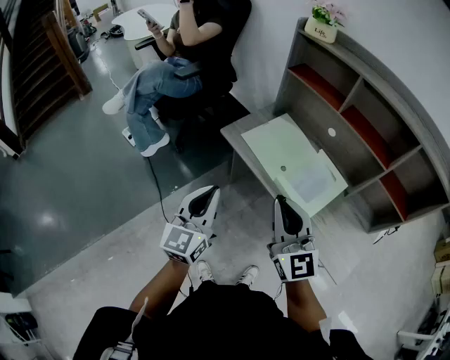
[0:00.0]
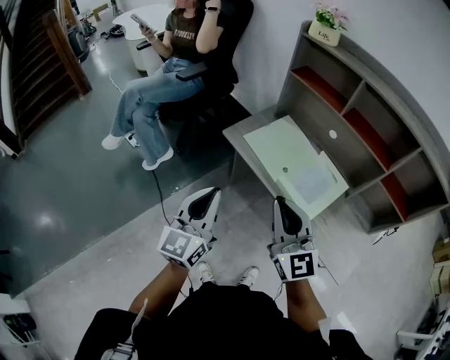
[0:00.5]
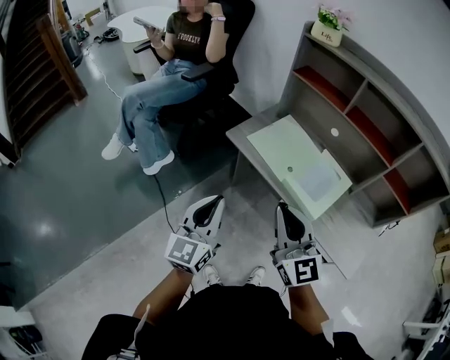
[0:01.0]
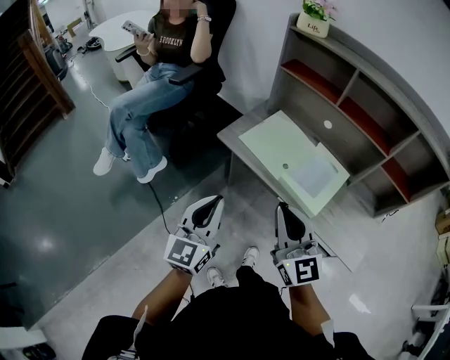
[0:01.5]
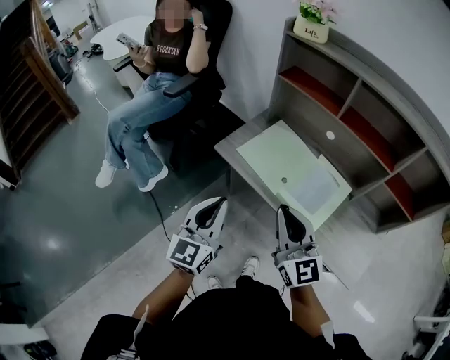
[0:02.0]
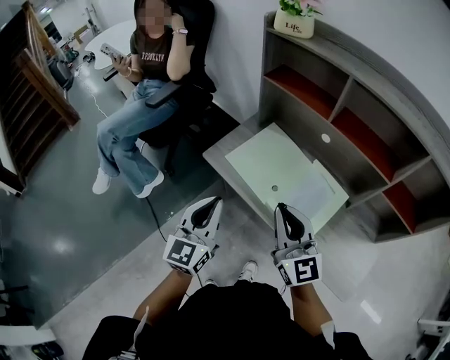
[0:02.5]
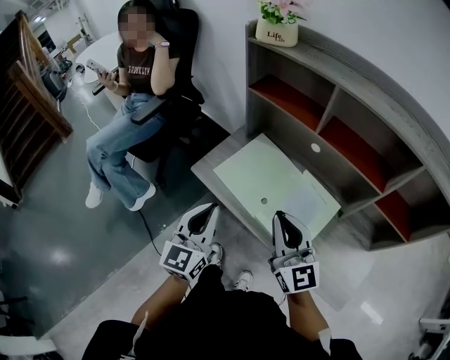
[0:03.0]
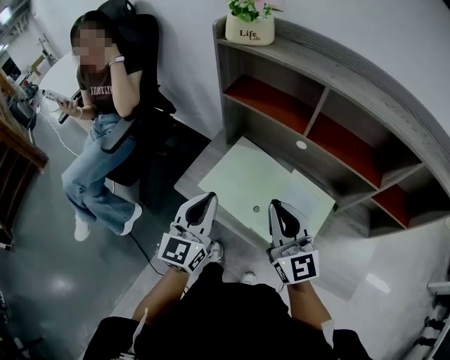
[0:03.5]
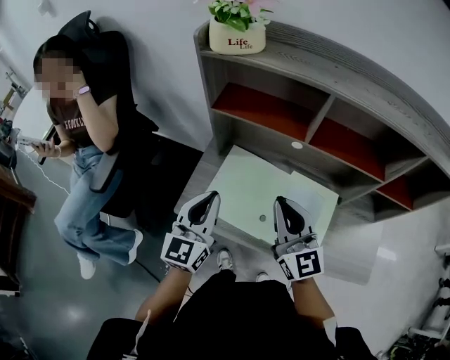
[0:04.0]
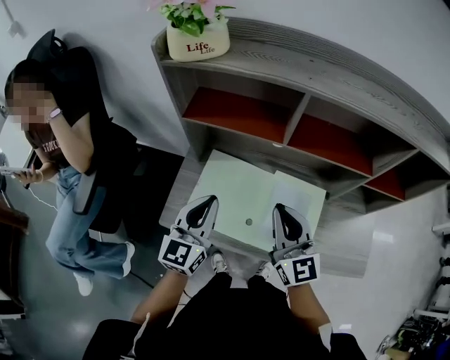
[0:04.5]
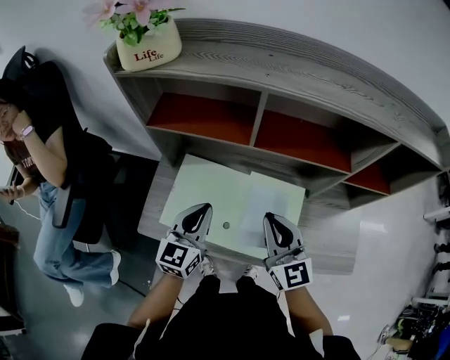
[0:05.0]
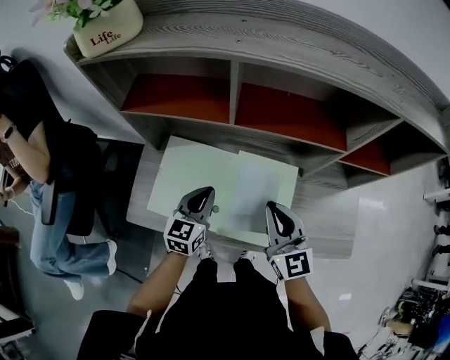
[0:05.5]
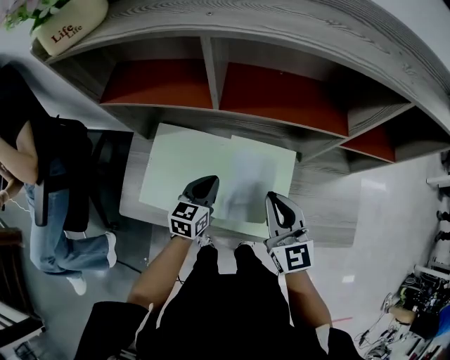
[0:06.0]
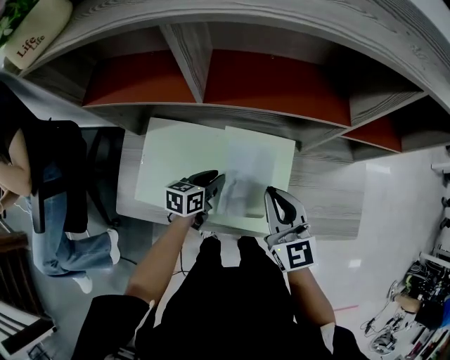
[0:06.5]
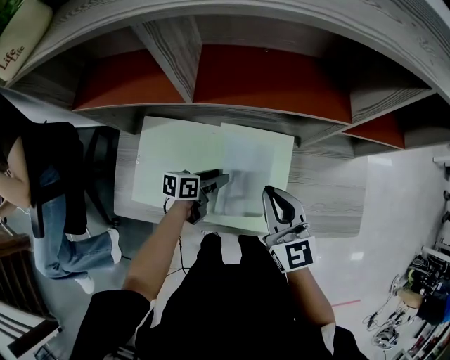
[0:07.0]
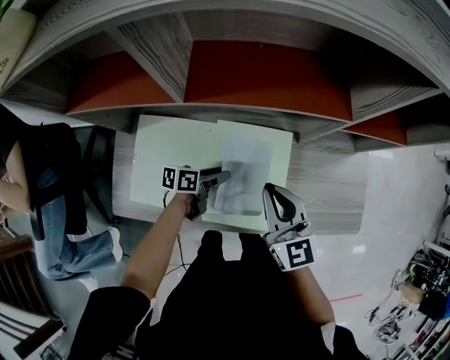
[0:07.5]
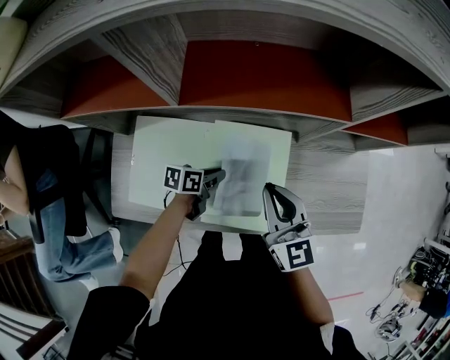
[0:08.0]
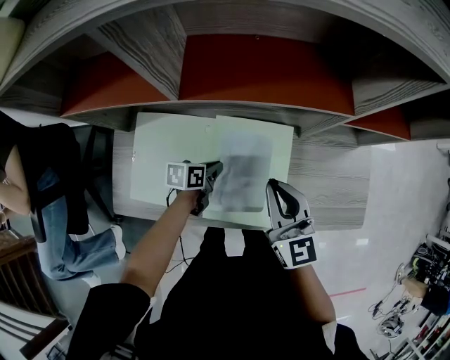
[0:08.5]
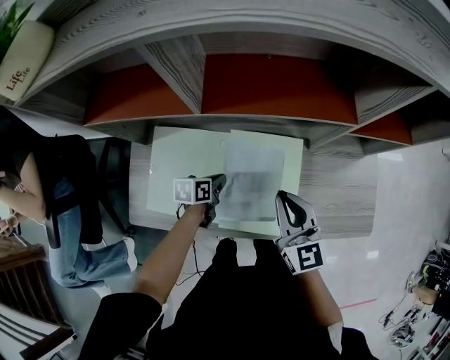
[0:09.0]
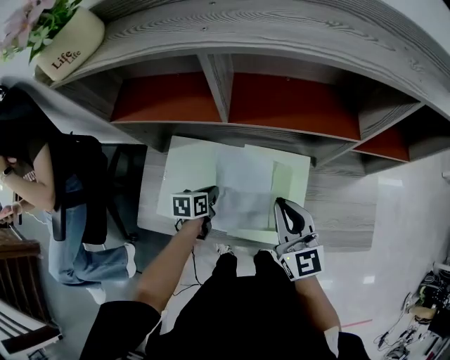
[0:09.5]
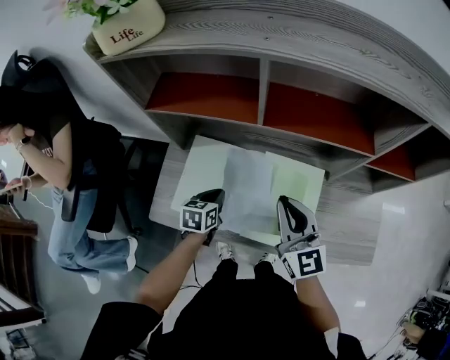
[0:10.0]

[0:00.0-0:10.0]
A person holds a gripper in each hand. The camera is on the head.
0:00.0 to 0:02.0: Both grippers travel together forward, approximately 5 cm.
0:02.0 to 0:04.0: The grippers both shift forward by roughly 25 cm. The right gripper changes its angle by about 20 degrees. The left gripper turns by approximately 20 degrees.
0:04.0 to 0:06.0: The right gripper shifts about 20 cm to the right and downward, and turns by some 20 degrees; the left gripper travels downward and to the right by about 30 cm, and changes its angle by about 30 degrees.
0:06.0 to 0:08.0: The left gripper goes approximately 15 cm downward and to the right, changes its angle by roughly 50 degrees, and opens, then closes again.
0:08.0 to 0:10.0: The right gripper moves about 10 cm. Meanwhile the left gripper moves approximately 15 cm, and rotates some 40 degrees.

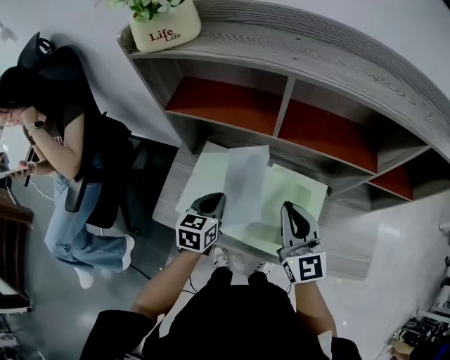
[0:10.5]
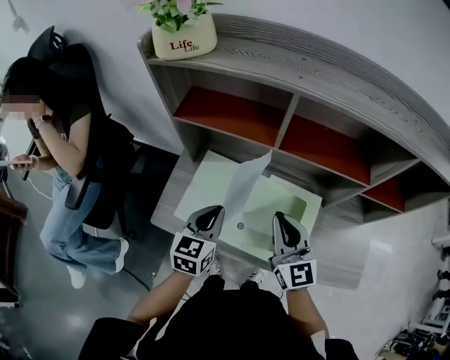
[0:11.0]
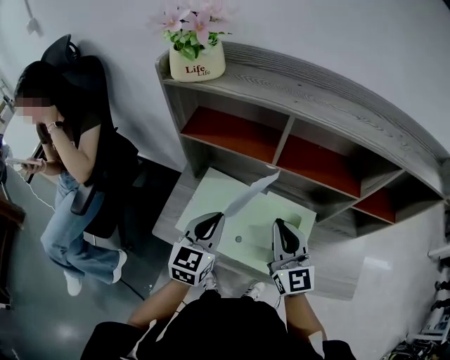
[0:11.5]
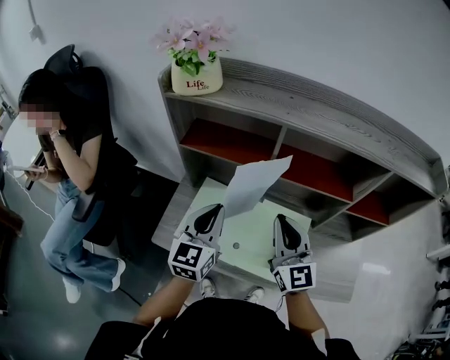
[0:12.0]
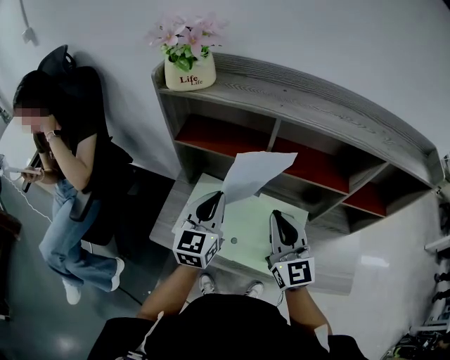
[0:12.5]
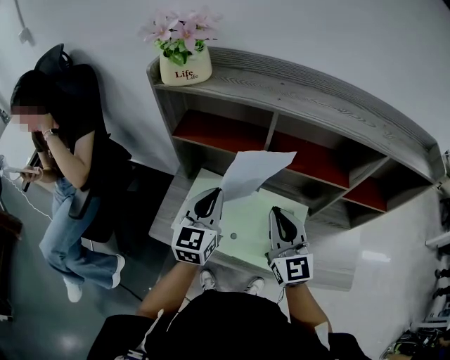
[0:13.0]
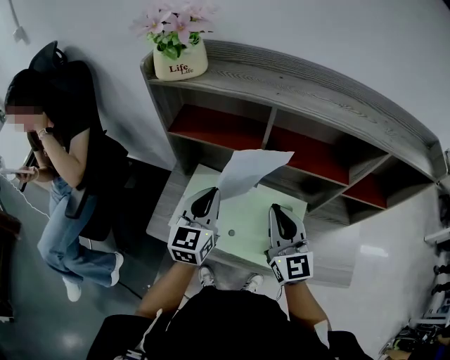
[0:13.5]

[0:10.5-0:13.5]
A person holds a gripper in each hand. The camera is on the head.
0:10.5 to 0:12.0: The left gripper travels upward by about 20 cm, and rotates some 30 degrees, while the right gripper shifts roughly 10 cm upward.
0:12.0 to 0:13.5: There are only small adjustments of the grippers.

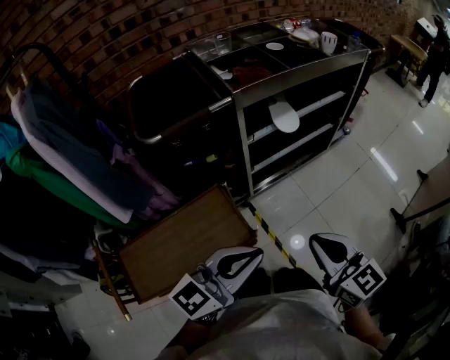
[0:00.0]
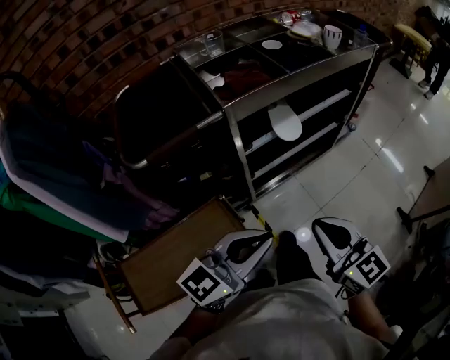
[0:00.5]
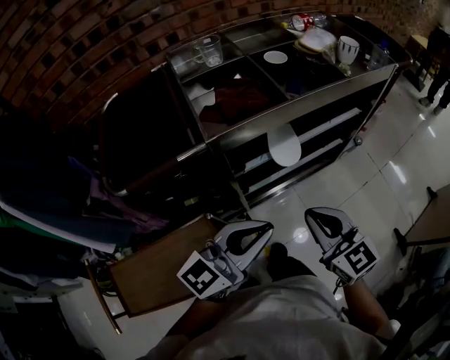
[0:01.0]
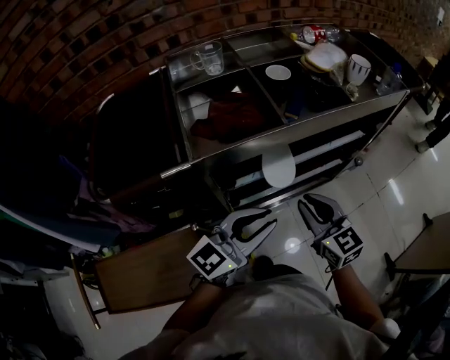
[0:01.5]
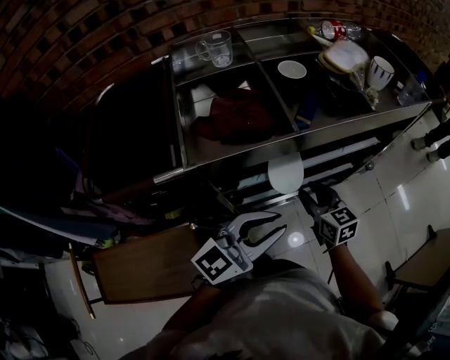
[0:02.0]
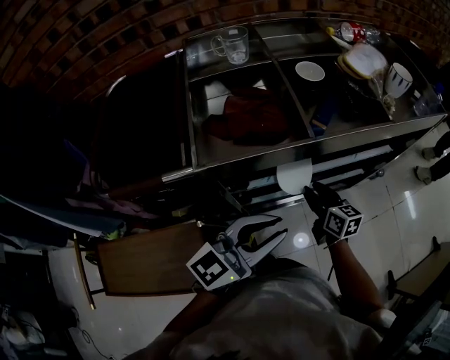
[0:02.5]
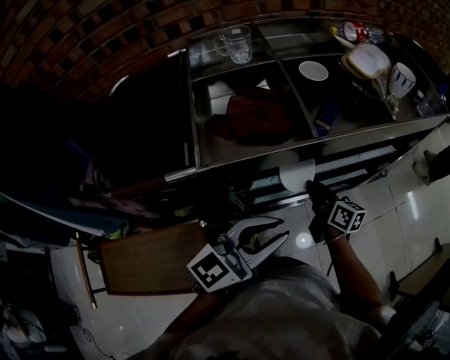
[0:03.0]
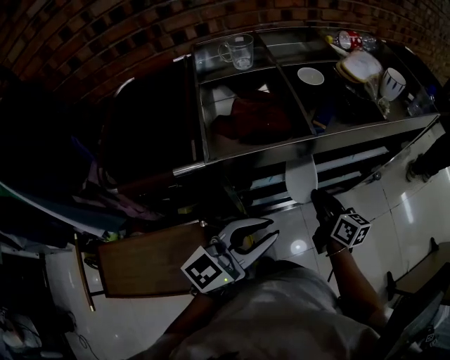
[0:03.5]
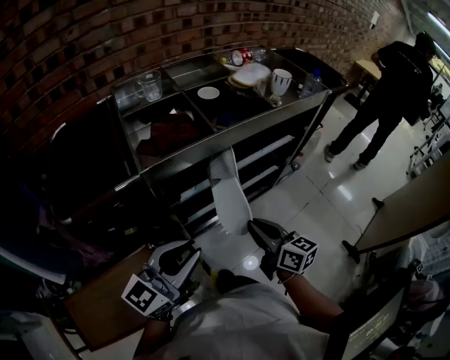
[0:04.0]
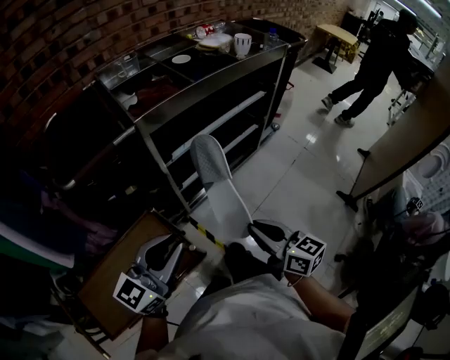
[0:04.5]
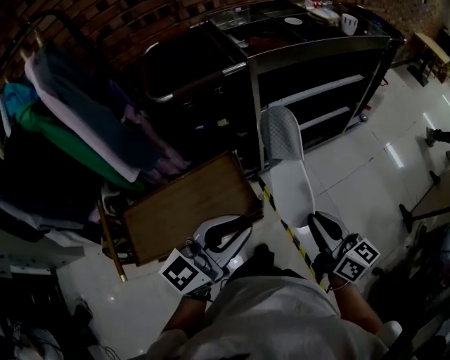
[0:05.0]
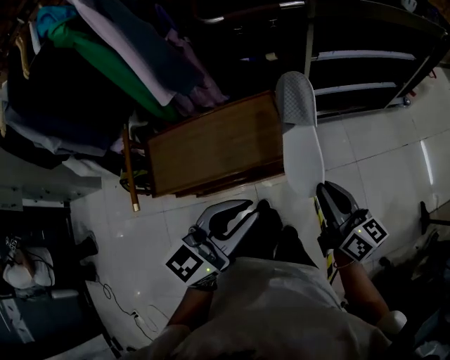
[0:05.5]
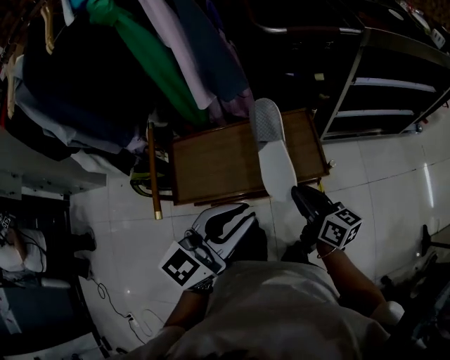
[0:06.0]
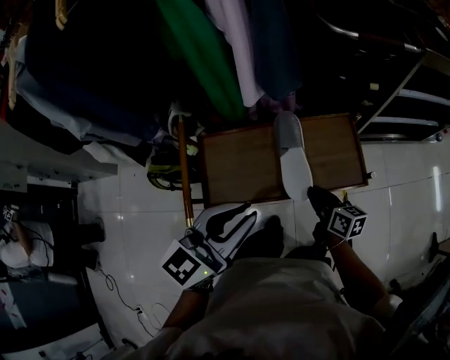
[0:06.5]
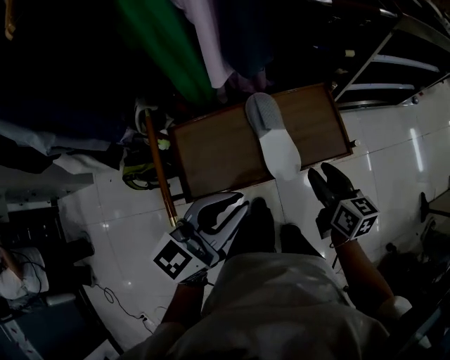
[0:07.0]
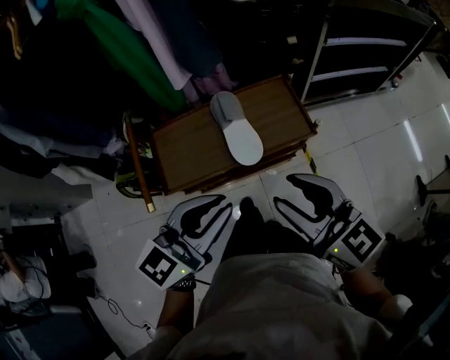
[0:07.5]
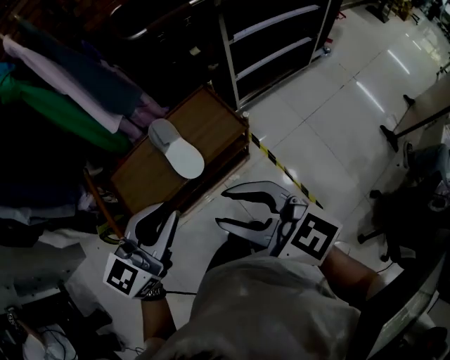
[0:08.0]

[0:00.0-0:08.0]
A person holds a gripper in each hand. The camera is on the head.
0:00.0 to 0:02.0: The right gripper shifts approximately 50 cm forward and downward, and opens up, while the left gripper moves forward, some 35 cm.
0:02.0 to 0:04.0: The right gripper shifts some 20 cm backward and upward, turns by roughly 20 degrees, and closes its fingers, while the left gripper is displaced backward, to the left and upward by approximately 15 cm.
0:04.0 to 0:06.0: Both grippers are carried some 50 cm. The right gripper swivels some 30 degrees; the left gripper rotates approximately 20 degrees.
0:06.0 to 0:08.0: The left gripper moves backward, some 5 cm, and reaches approximately 15 cm to the left, then returns, while the right gripper heads upward and backward, covering about 25 cm, changes its angle by about 40 degrees, and opens.

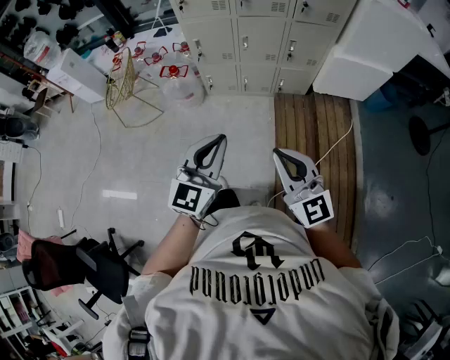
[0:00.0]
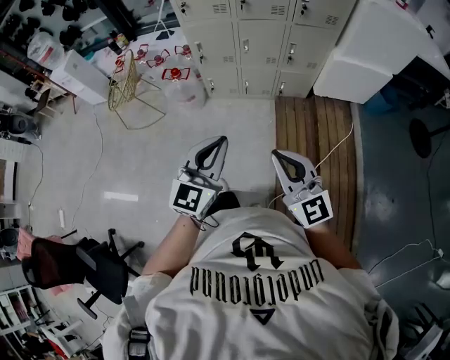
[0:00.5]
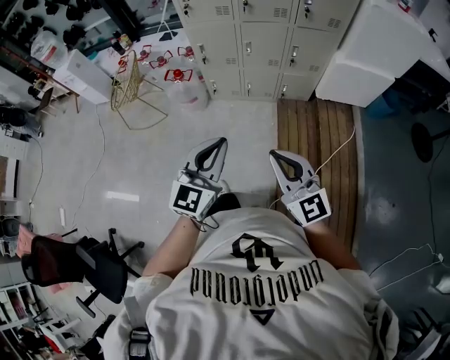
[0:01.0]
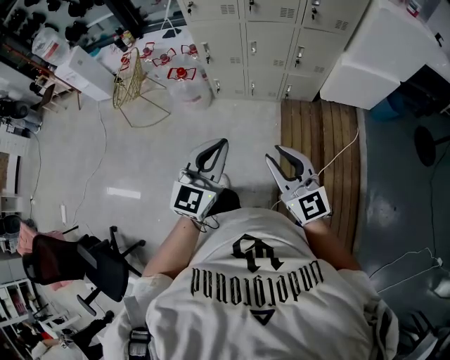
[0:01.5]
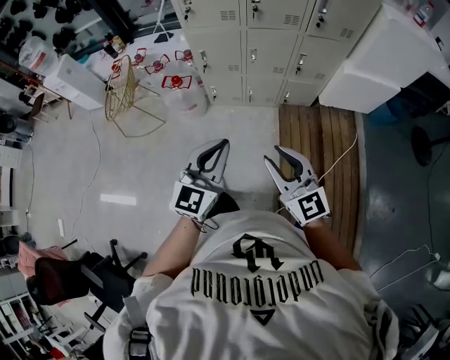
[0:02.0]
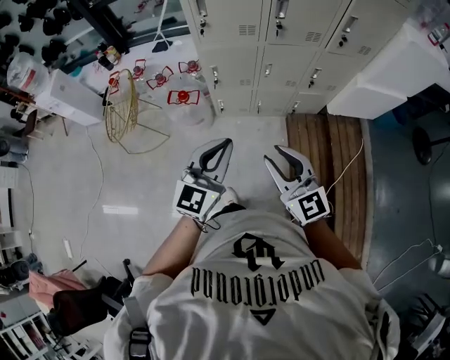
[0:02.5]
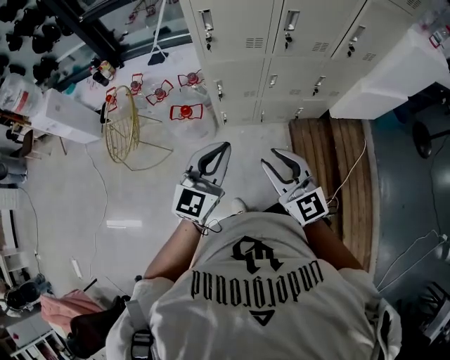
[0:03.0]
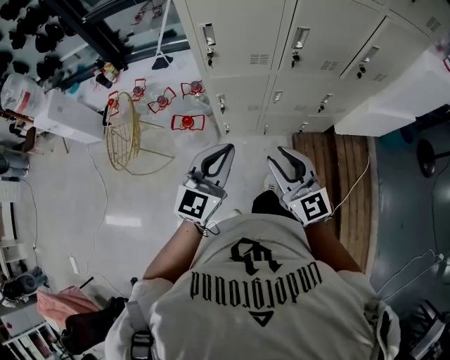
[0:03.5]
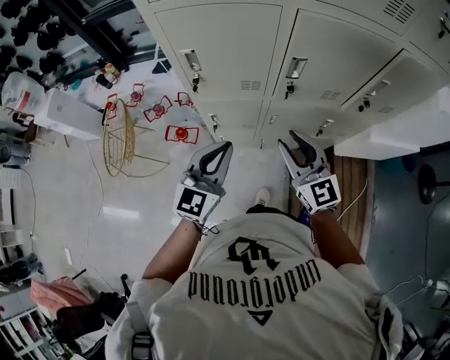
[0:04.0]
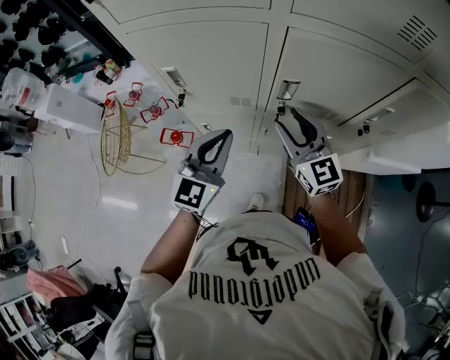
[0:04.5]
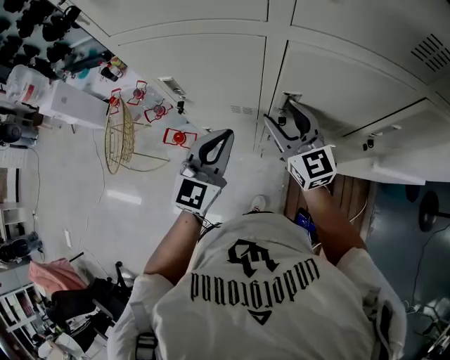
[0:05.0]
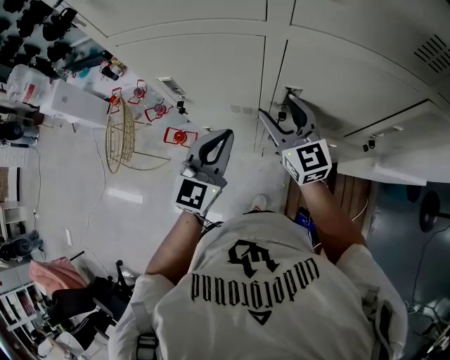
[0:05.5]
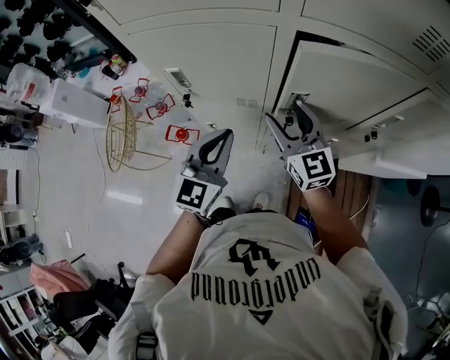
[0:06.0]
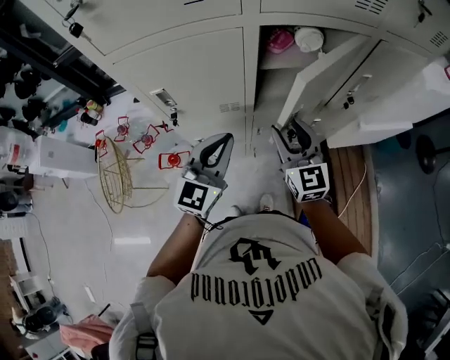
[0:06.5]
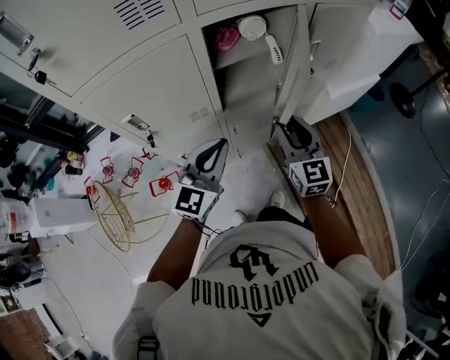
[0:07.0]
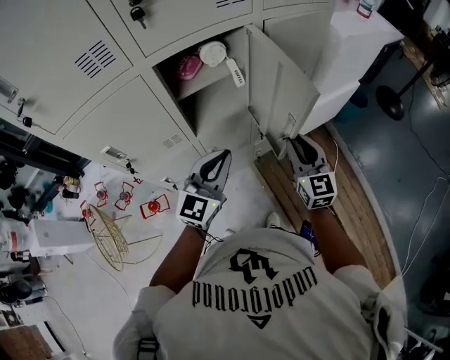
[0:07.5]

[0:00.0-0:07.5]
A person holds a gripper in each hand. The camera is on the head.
0:00.0 to 0:02.0: Both grippers travel together forward, approximately 10 cm. The right gripper opens up.
0:02.0 to 0:04.0: Both grippers are carried forward, about 40 cm.
0:04.0 to 0:05.5: The right gripper goes approximately 20 cm forward, and opens its fingers. The left gripper moves forward and to the right, about 15 cm.
0:05.5 to 0:07.5: The left gripper ends up some 20 cm from where it was, and changes its angle by about 40 degrees. The right gripper shifts by roughly 35 cm, changes its angle by about 50 degrees, and closes up.
